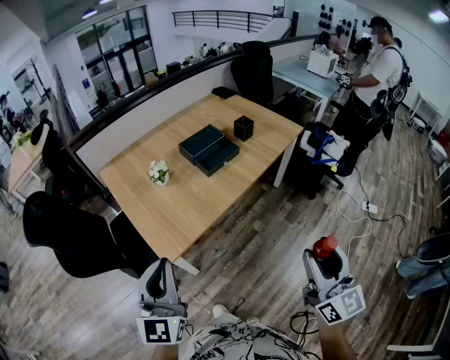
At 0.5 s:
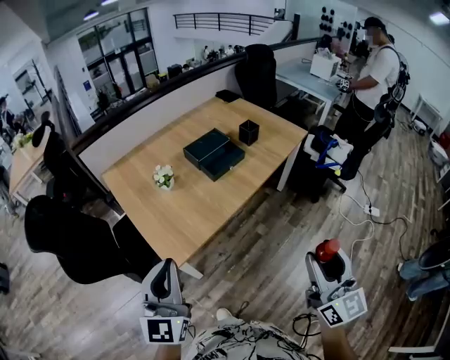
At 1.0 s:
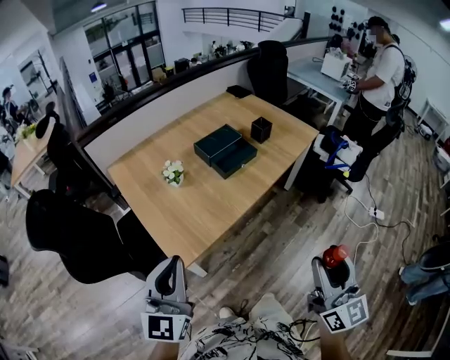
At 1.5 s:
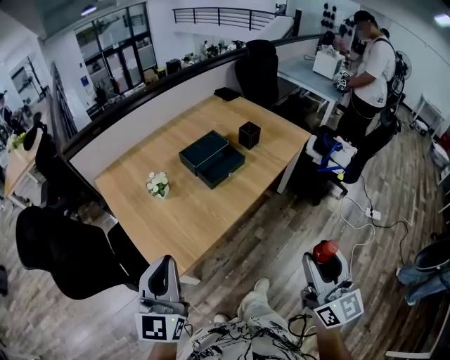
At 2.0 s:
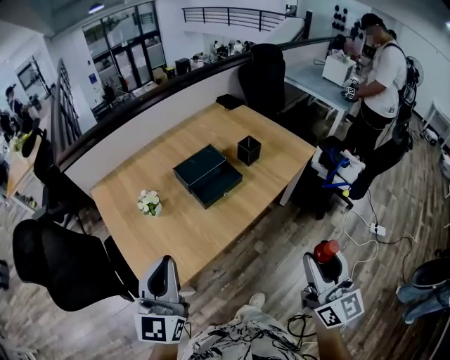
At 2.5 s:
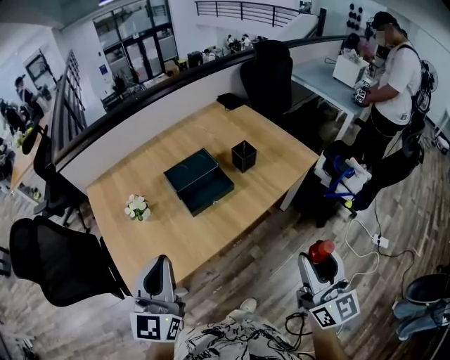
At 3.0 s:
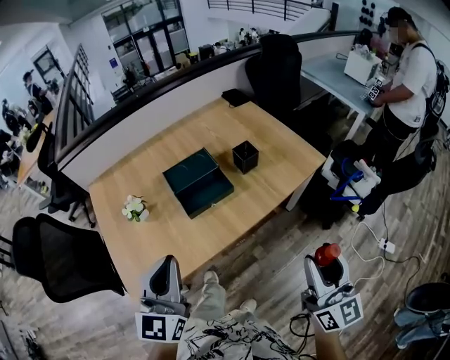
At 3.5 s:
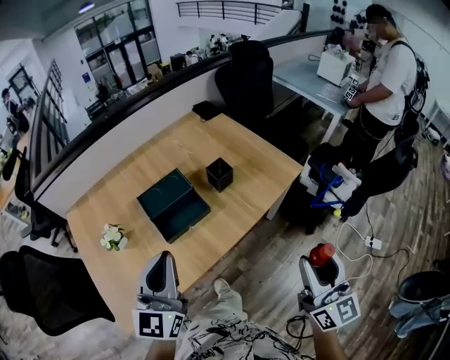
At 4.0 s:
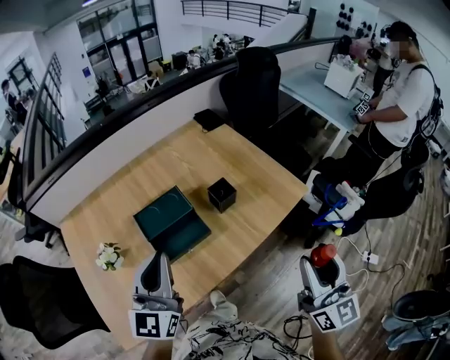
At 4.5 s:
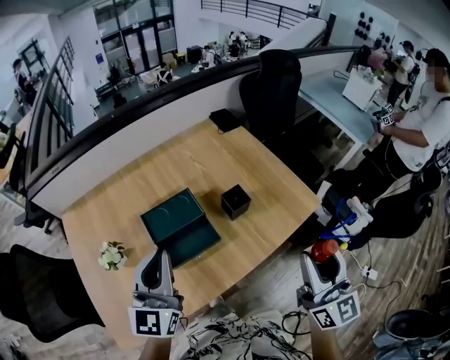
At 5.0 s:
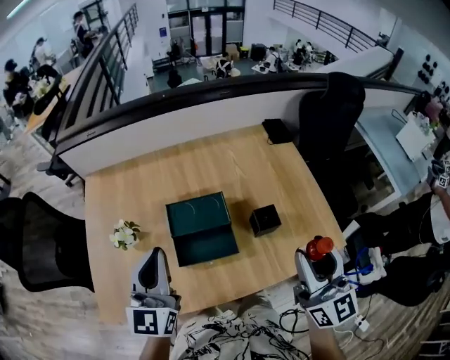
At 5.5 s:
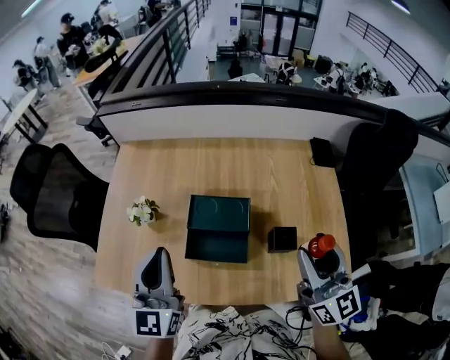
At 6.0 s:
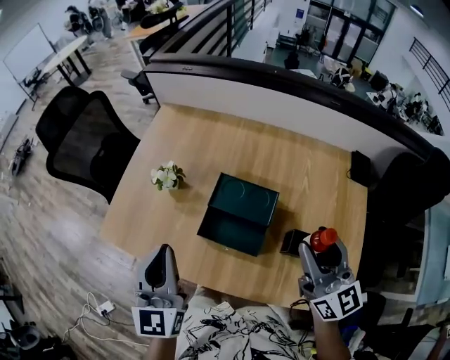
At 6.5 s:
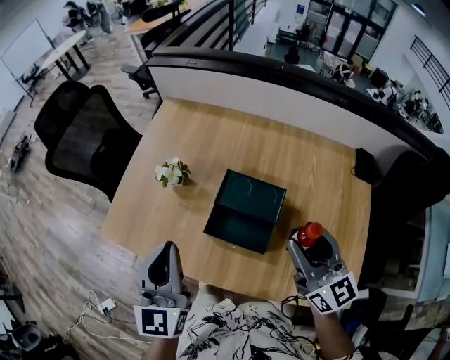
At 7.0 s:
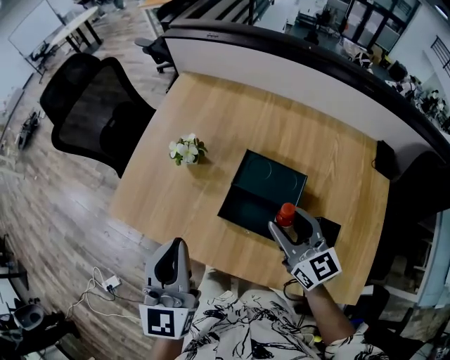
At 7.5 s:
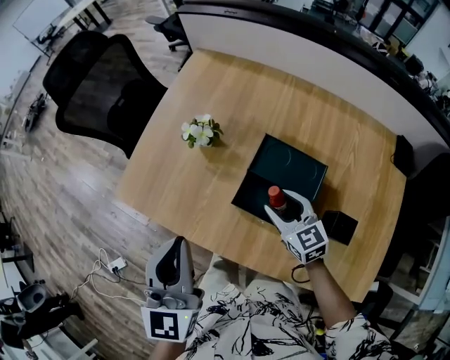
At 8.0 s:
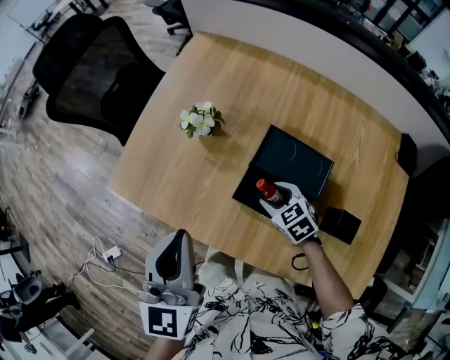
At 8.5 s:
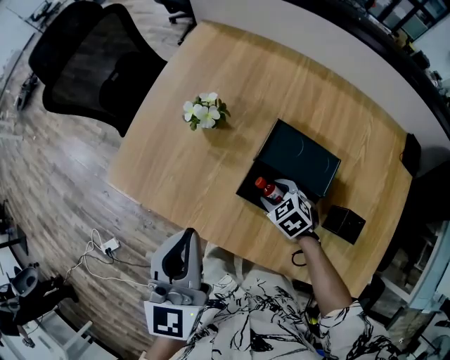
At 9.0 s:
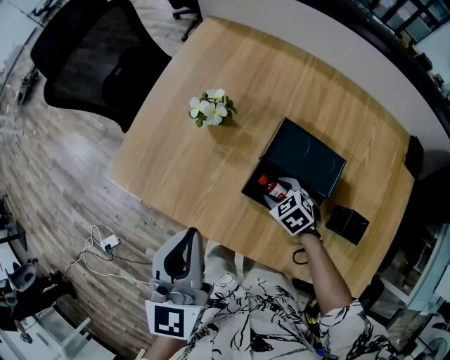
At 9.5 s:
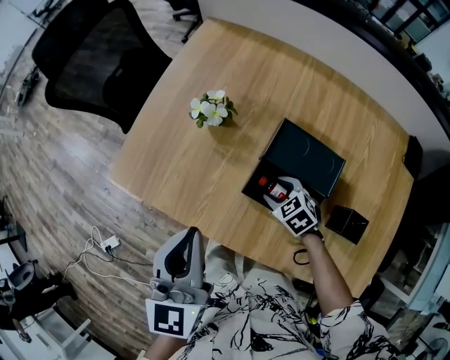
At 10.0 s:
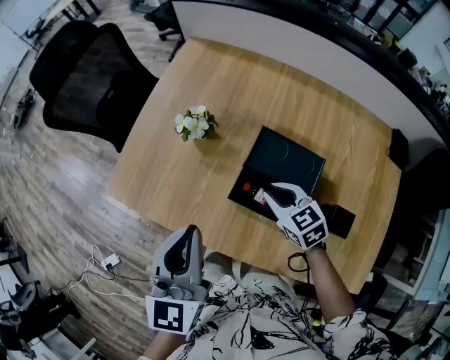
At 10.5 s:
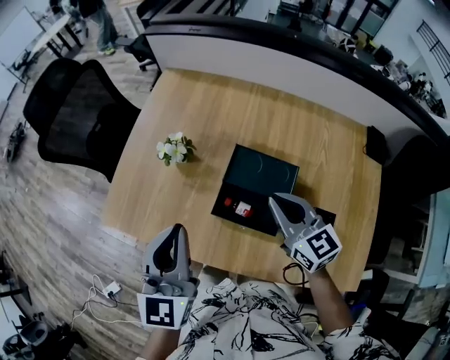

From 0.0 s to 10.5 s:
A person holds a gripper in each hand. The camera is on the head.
From 0.0 s to 2.0 s: Both grippers travel together forward, roughly 20 cm.
From 2.0 s to 4.0 s: The grippers both shift forward and to the right by approximately 35 cm.
From 4.0 s to 6.5 s: The left gripper shifts by roughly 10 cm, and rotates roughly 60 degrees. The right gripper shifts by roughly 35 cm, and rotates approximately 70 degrees.
From 6.5 s to 8.5 s: The left gripper heads downward, covering some 5 cm, while the right gripper moves downward, some 35 cm, and tips its fingers downward by roughly 60 degrees.
From 8.5 s to 10.5 s: The left gripper moves roughly 5 cm; the right gripper moves upward, some 25 cm, angles its fingers upward, by about 40 degrees, and closes its fingers.

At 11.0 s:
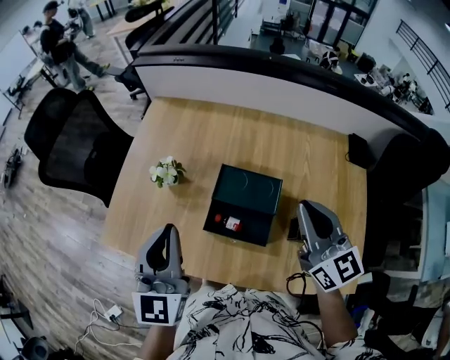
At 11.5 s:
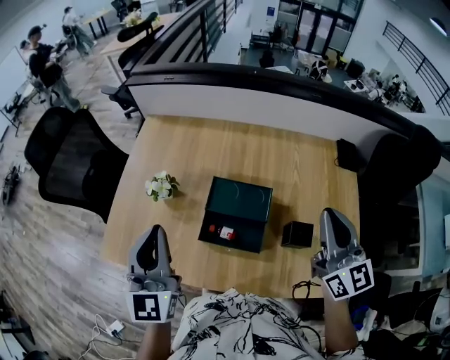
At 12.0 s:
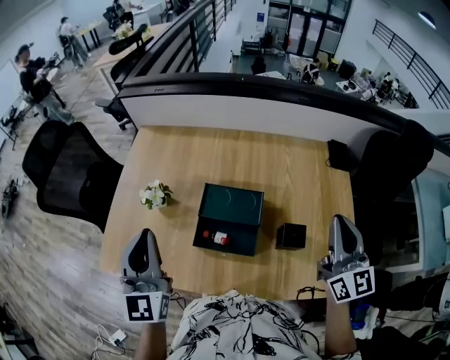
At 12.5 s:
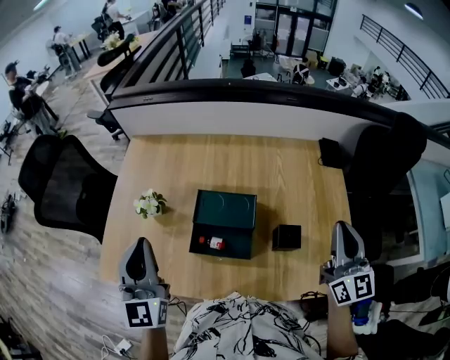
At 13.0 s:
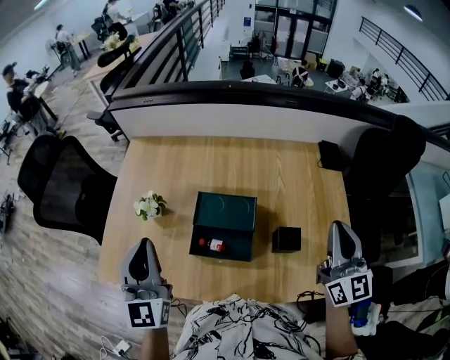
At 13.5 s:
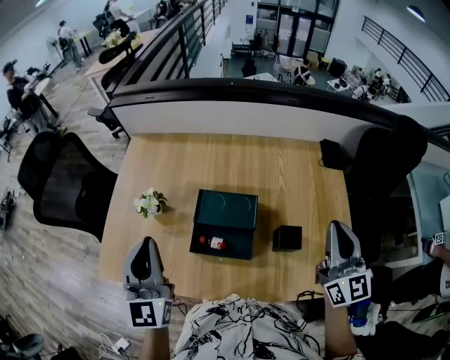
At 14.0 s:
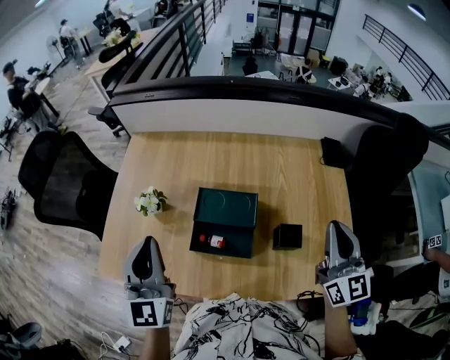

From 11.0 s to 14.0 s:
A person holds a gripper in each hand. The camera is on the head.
From 11.0 s to 12.5 s: The right gripper shifts approximately 20 cm to the right and backward, and swivels approximately 30 degrees.
From 12.5 s to 14.0 s: There are only small adjustments of the grippers.

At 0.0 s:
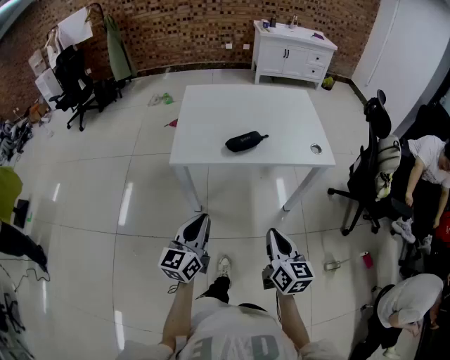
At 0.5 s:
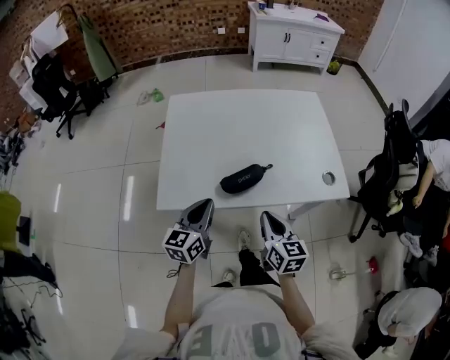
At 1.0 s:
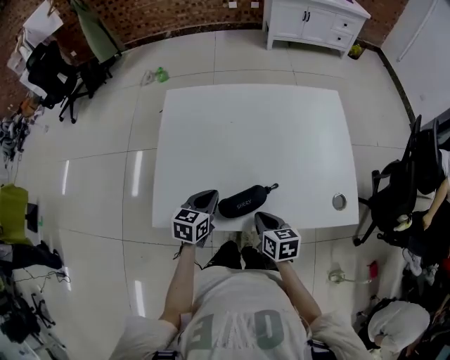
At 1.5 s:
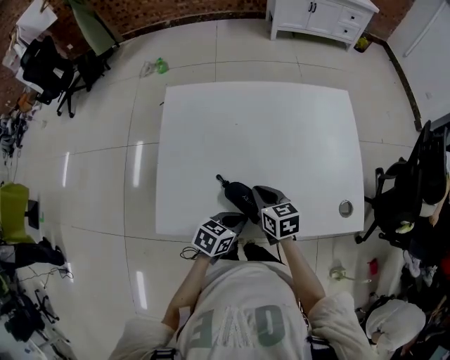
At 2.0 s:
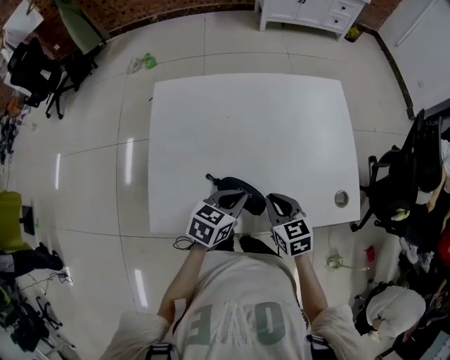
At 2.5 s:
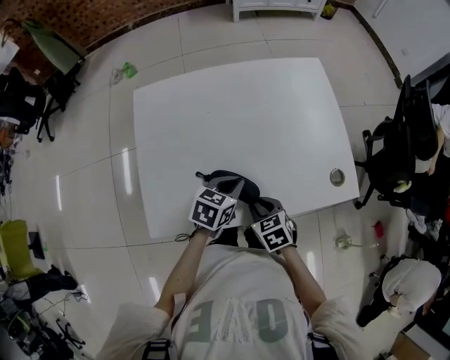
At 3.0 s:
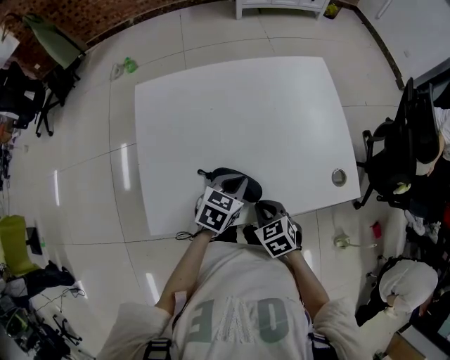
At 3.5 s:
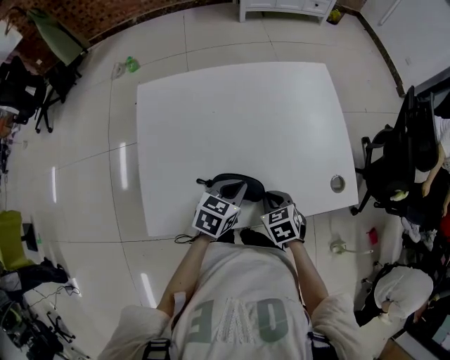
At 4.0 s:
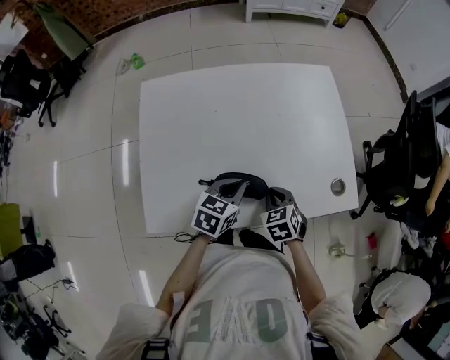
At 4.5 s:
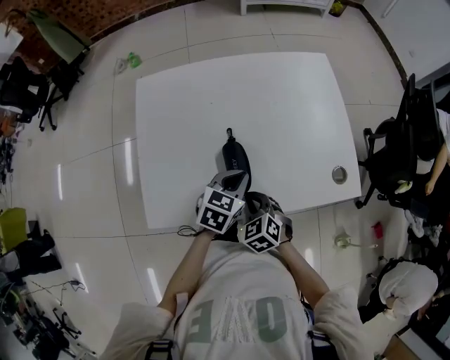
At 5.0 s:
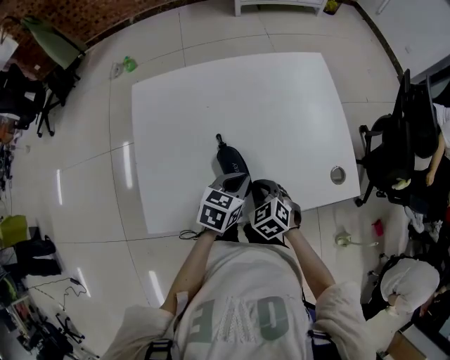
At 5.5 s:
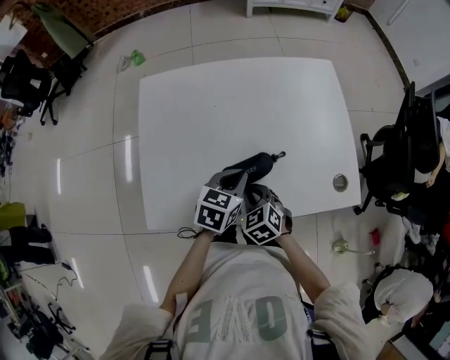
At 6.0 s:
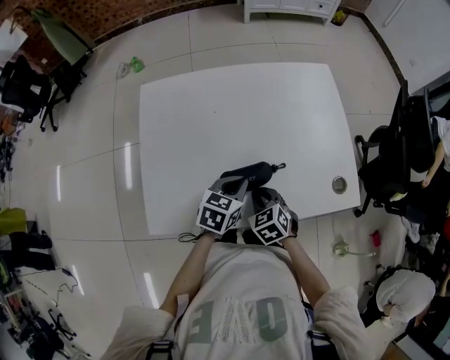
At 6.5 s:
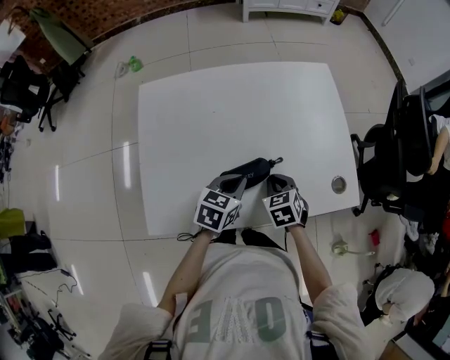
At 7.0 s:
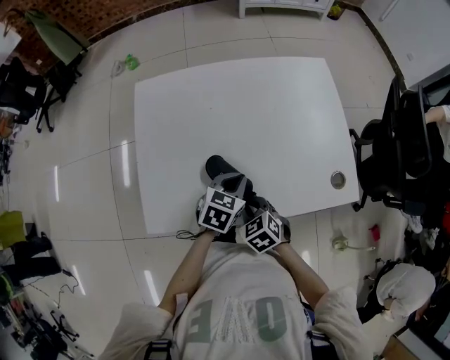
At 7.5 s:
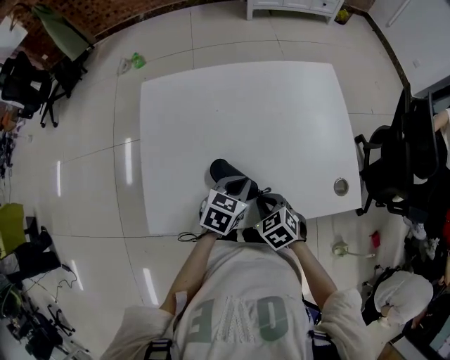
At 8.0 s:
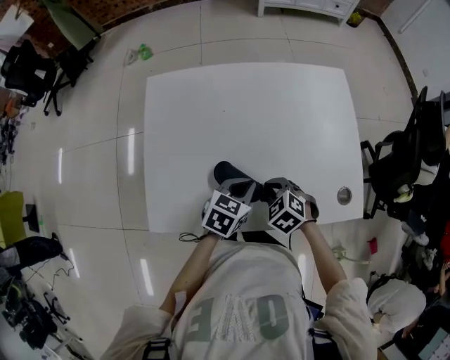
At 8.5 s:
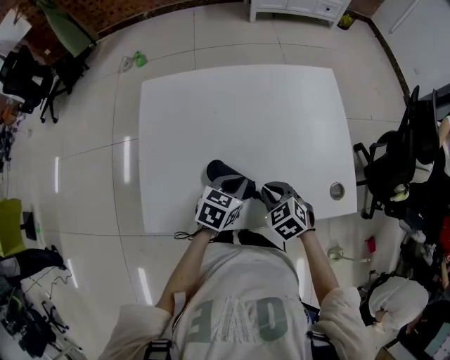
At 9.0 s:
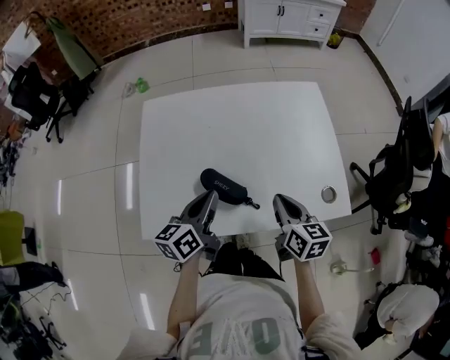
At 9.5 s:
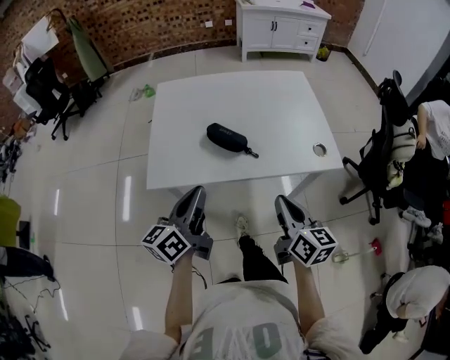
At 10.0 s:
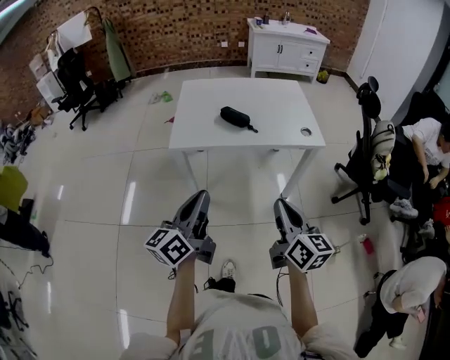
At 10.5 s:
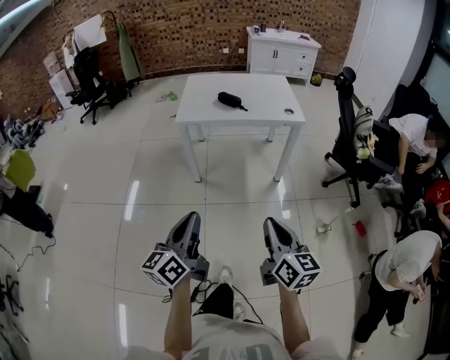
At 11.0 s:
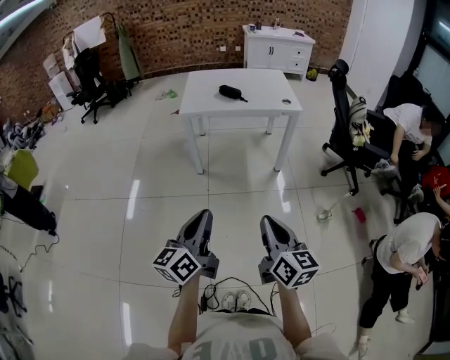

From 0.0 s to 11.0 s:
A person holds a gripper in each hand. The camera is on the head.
From 0.0 s to 2.0 s: The two grippers travel together, forward, some 50 cm. The right gripper turns by approximately 30 degrees. The left gripper tilts its fingers about 30 degrees downward.
From 2.0 s to 3.5 s: The right gripper moves downward, about 5 cm.
From 3.5 s to 5.5 s: The right gripper is displaced to the left by approximately 5 cm.
From 5.5 s to 7.5 s: The right gripper reaches roughly 5 cm forward, then returns.
From 7.5 s to 9.0 s: The right gripper goes some 15 cm upward and to the right, and tips its fingers upward by about 30 degrees; the left gripper heads upward and to the left, covering roughly 10 cm, and changes its angle by about 50 degrees.
From 9.0 s to 11.0 s: The two grippers travel together, backward, roughly 1 m. The left gripper swivels some 20 degrees. Meanwhile the right gripper rotates approximately 20 degrees.

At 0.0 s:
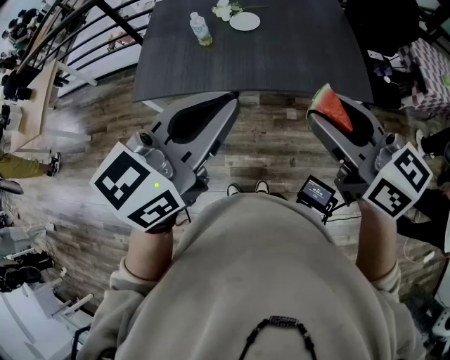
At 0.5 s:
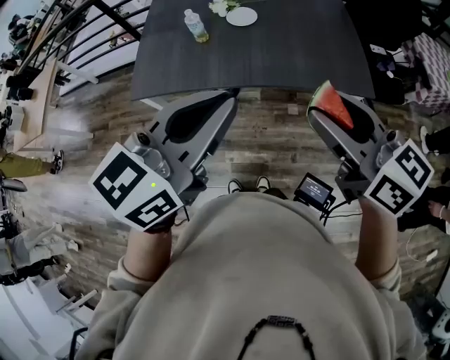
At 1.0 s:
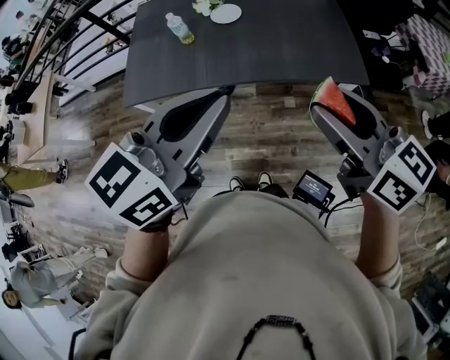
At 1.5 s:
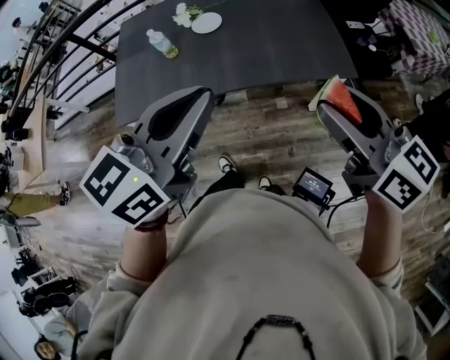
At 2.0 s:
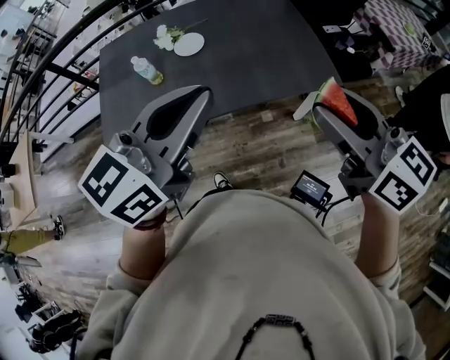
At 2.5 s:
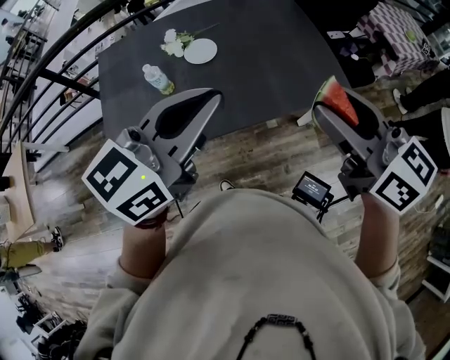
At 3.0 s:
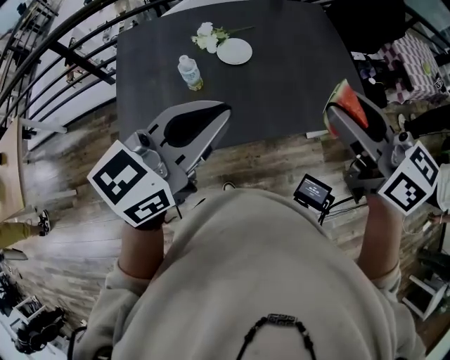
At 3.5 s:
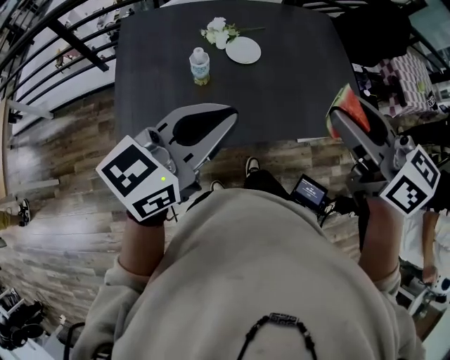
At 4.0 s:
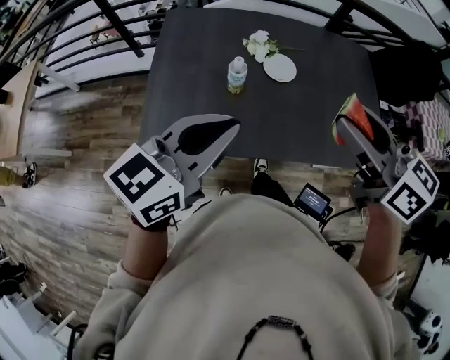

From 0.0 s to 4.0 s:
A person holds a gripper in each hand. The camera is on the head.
From 0.0 s to 2.0 s: The right gripper moves to the right and forward, some 10 cm. Meanwhile the left gripper shifts roughly 15 cm forward and to the right.
From 2.0 s to 4.0 s: The right gripper goes approximately 10 cm to the left, and moves about 5 cm forward and comes back; the left gripper goes about 15 cm backward, to the left and downward.
